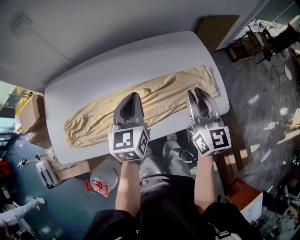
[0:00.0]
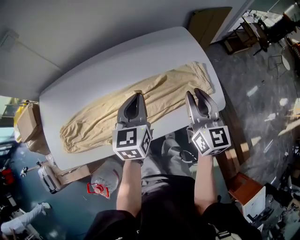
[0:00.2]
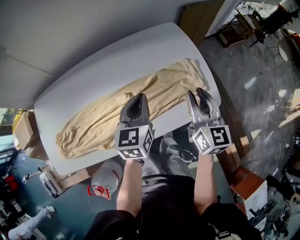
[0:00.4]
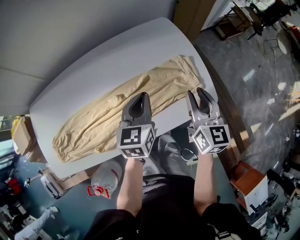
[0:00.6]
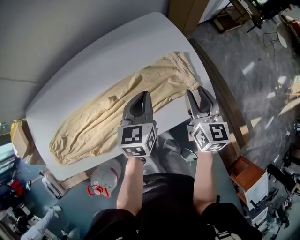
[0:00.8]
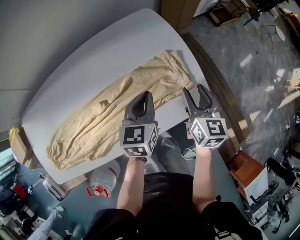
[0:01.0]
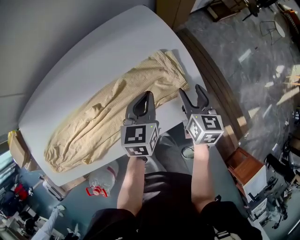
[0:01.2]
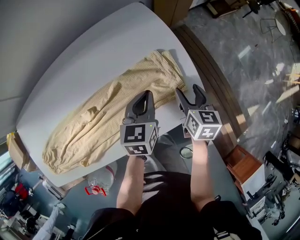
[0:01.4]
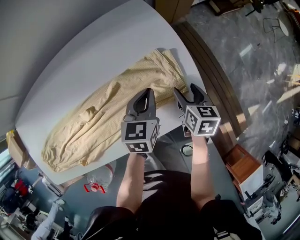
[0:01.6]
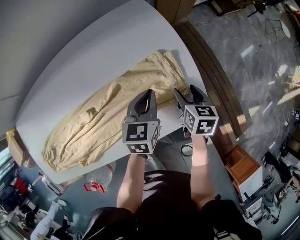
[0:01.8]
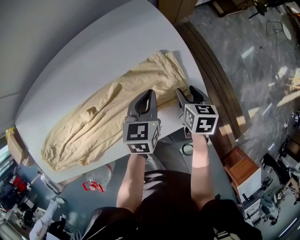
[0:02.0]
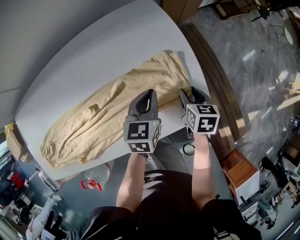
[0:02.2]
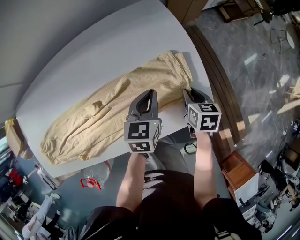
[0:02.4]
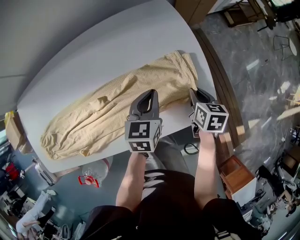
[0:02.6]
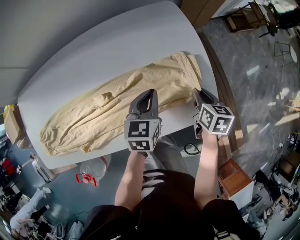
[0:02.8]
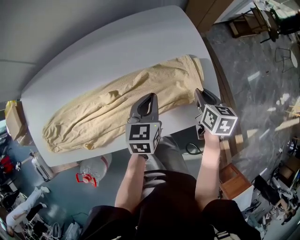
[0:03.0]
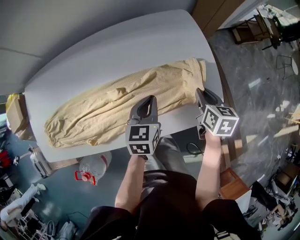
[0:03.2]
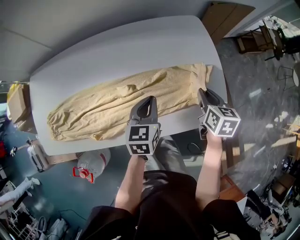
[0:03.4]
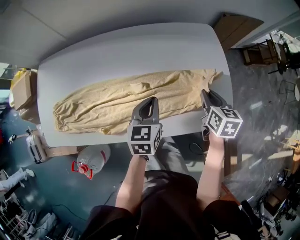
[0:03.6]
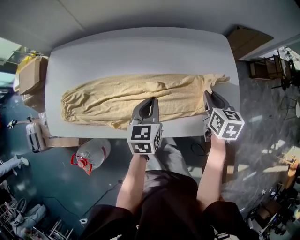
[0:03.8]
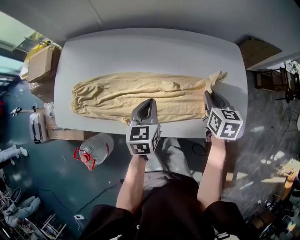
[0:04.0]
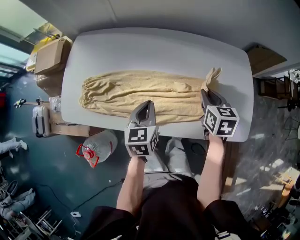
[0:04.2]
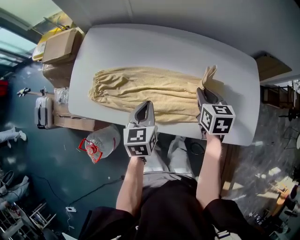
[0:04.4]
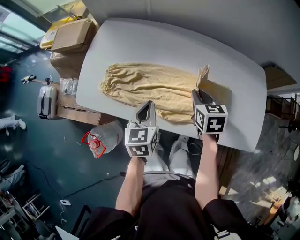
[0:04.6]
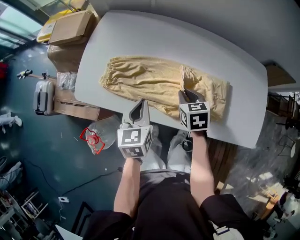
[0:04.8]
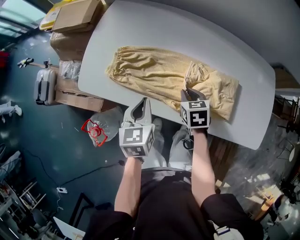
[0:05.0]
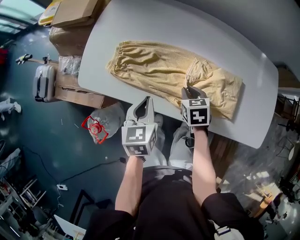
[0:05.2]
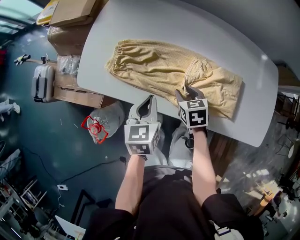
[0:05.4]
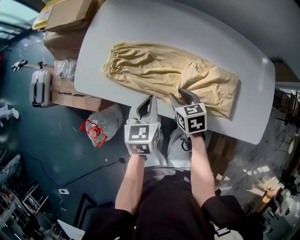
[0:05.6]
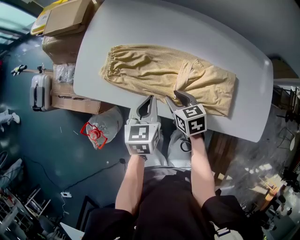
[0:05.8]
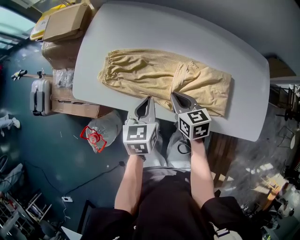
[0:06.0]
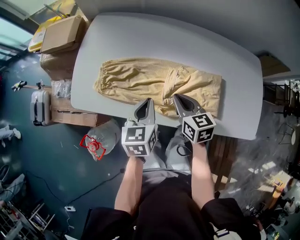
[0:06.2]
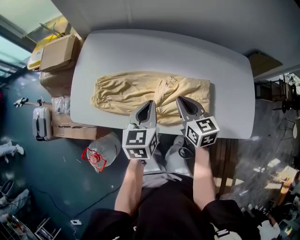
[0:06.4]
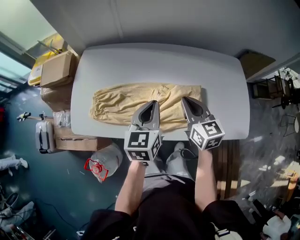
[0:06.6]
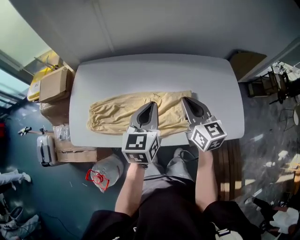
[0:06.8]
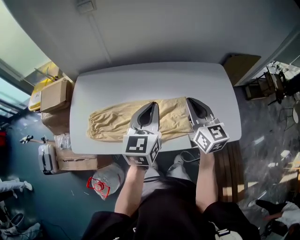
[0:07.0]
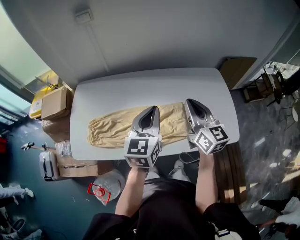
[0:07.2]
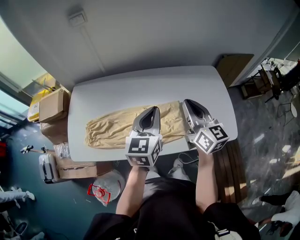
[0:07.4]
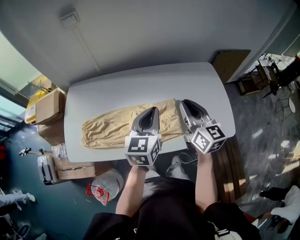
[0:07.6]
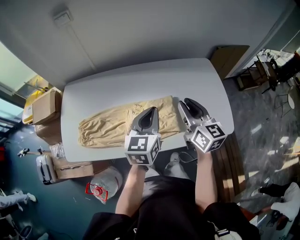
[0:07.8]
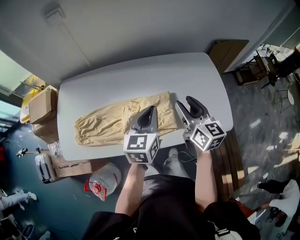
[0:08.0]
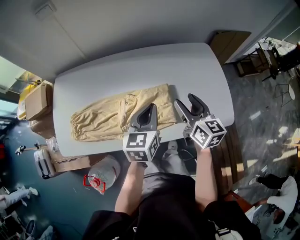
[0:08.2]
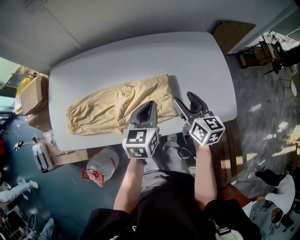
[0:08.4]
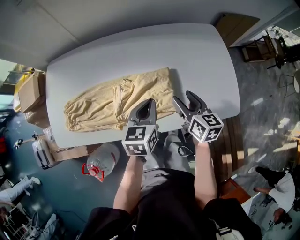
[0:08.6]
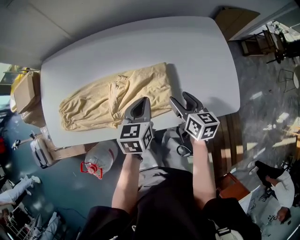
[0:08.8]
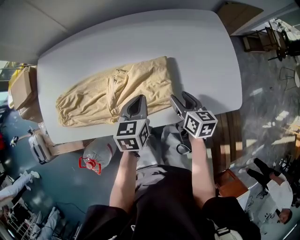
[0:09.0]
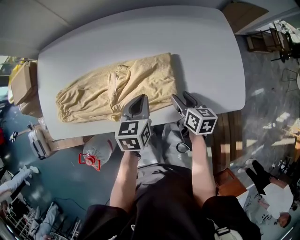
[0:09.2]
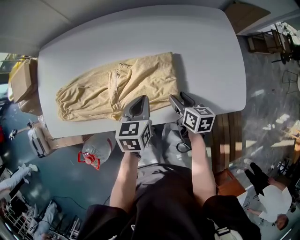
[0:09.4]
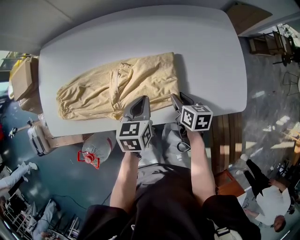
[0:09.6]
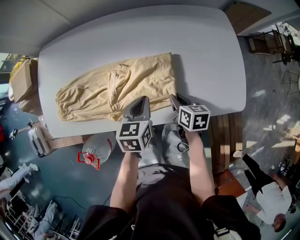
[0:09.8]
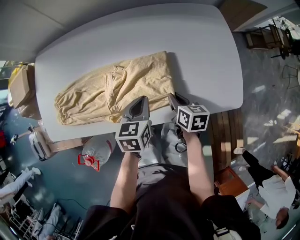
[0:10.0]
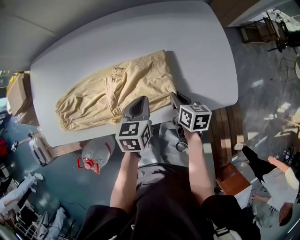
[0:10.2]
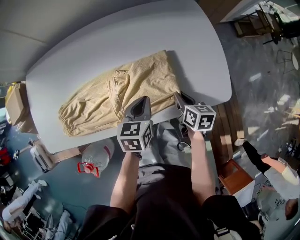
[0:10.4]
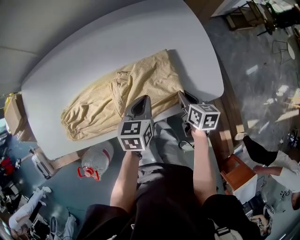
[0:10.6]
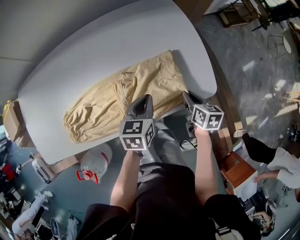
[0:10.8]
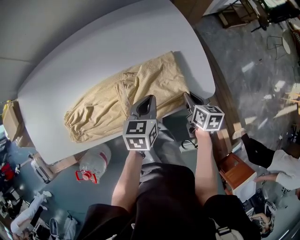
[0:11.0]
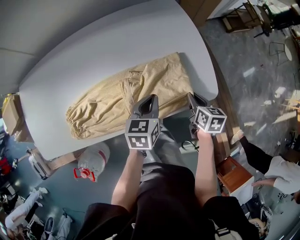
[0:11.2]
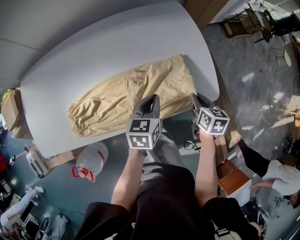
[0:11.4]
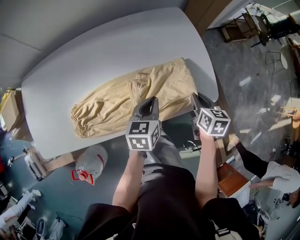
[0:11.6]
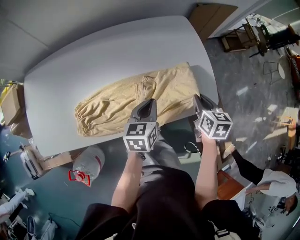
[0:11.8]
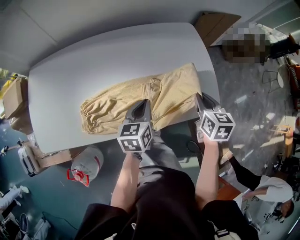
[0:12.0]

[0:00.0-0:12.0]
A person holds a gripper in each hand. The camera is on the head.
0:00.0 to 0:01.6: The left gripper shifts roughly 35 cm to the right, downward and forward, and rotates roughly 30 degrees; the right gripper goes approximately 40 cm downward, to the right and forward, points its fingers approximately 40 degrees further downward, and opens.
0:01.6 to 0:03.0: The left gripper shifts some 10 cm to the left. Meanwhile the right gripper shifts by some 5 cm, and closes its fingers.
0:03.0 to 0:04.4: The right gripper moves some 40 cm, and rotates approximately 40 degrees; the left gripper ends up about 40 cm from where it was, and turns by roughly 30 degrees.
0:04.4 to 0:06.0: The left gripper goes some 10 cm to the left. Meanwhile the right gripper shifts approximately 25 cm to the left and downward, and opens and closes again.
0:06.0 to 0:07.6: The right gripper ends up some 35 cm from where it was, and tips its fingers upward by about 30 degrees. The left gripper moves approximately 30 cm, and rotates some 30 degrees.
0:07.6 to 0:09.0: Both grippers move downward, roughly 25 cm. The left gripper changes its angle by some 30 degrees, while the right gripper turns by some 30 degrees, and opens up.
0:09.0 to 0:10.4: Both grippers move to the right, roughly 10 cm. The right gripper closes its fingers.
0:10.4 to 0:12.0: The right gripper goes some 15 cm upward, and swivels some 20 degrees. Meanwhile the left gripper shifts approximately 5 cm upward, and reaches some 10 cm to the right, then returns.

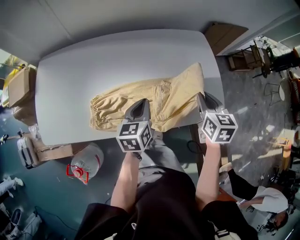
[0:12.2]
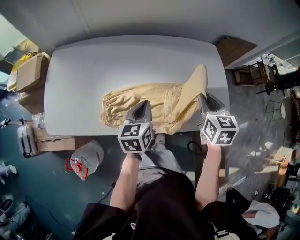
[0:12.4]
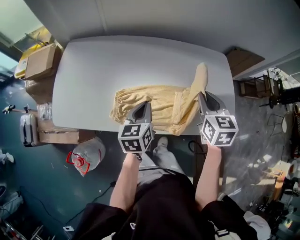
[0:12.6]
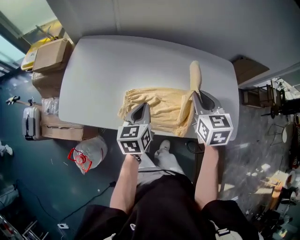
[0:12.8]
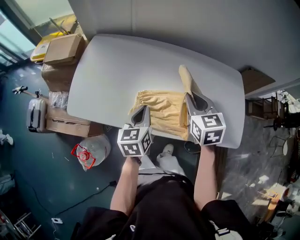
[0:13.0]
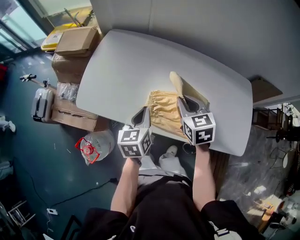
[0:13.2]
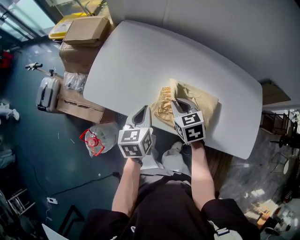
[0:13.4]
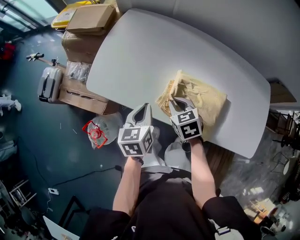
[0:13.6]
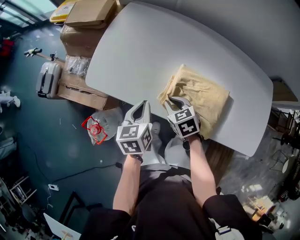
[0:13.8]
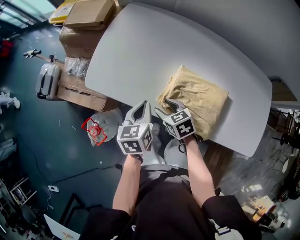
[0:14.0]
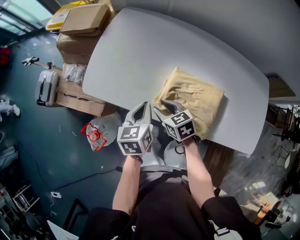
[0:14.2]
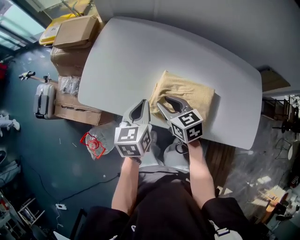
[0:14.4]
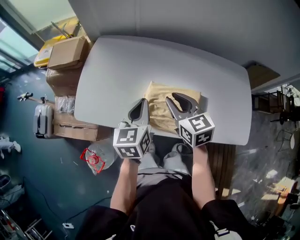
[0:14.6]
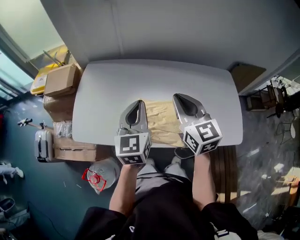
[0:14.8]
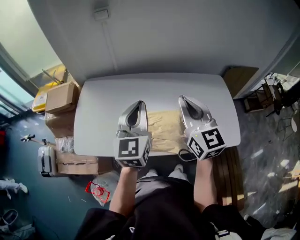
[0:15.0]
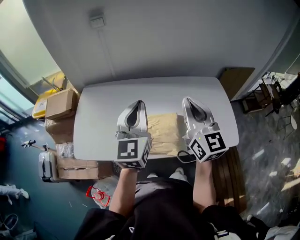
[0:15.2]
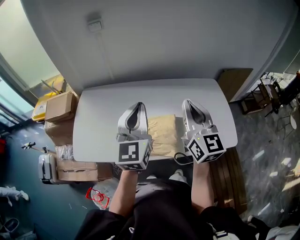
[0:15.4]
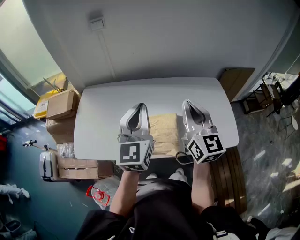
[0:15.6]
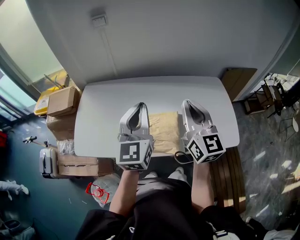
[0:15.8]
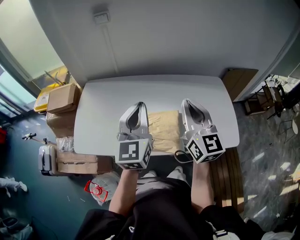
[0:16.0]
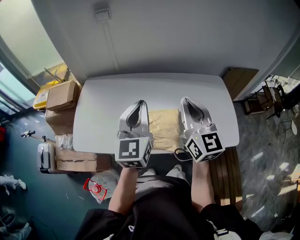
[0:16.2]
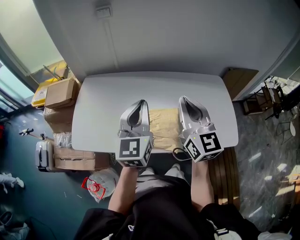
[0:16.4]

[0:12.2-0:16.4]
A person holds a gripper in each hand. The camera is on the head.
0:12.2 to 0:13.6: The right gripper ends up approximately 50 cm from where it was, and changes its angle by about 50 degrees; the left gripper changes place by approximately 35 cm, and turns by roughly 30 degrees.
0:13.6 to 0:15.0: The grippers both shift upward by about 30 cm. The left gripper points its fingers about 30 degrees further upward, while the right gripper tips its fingers upward by some 50 degrees, and opens, then closes once more.
0:15.0 to 0:16.4: The grippers move only a little.

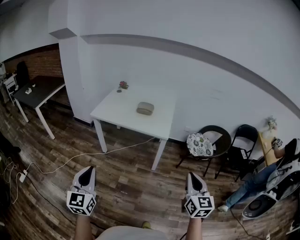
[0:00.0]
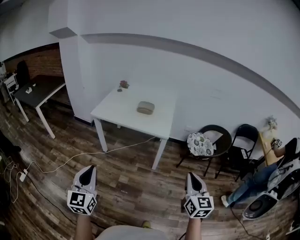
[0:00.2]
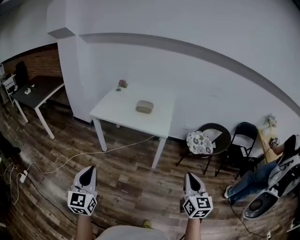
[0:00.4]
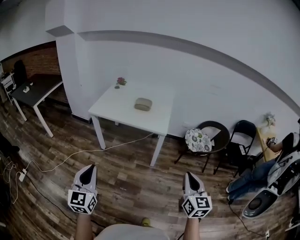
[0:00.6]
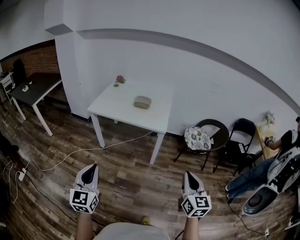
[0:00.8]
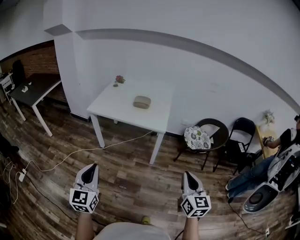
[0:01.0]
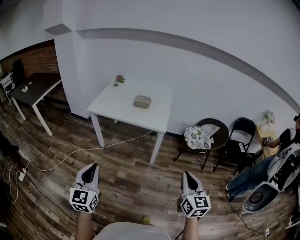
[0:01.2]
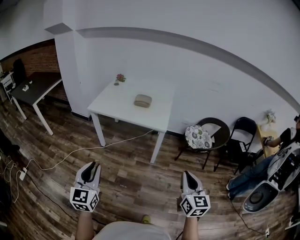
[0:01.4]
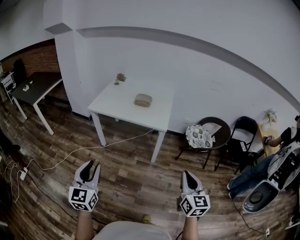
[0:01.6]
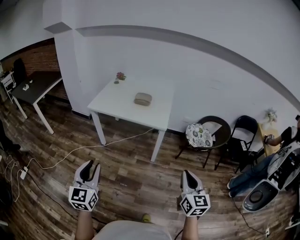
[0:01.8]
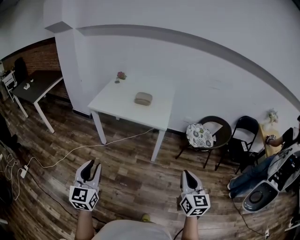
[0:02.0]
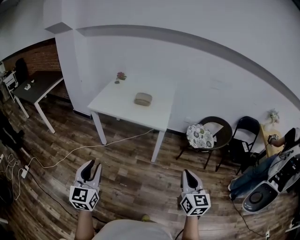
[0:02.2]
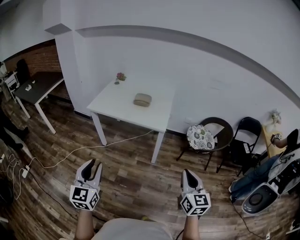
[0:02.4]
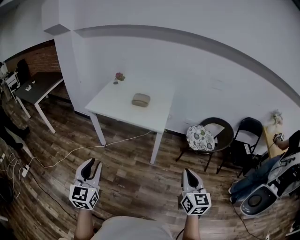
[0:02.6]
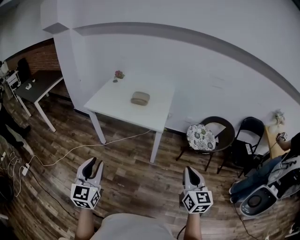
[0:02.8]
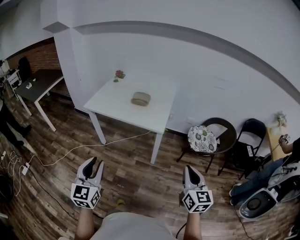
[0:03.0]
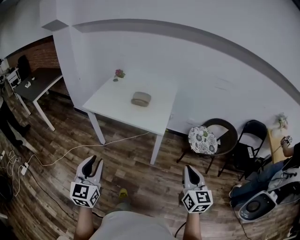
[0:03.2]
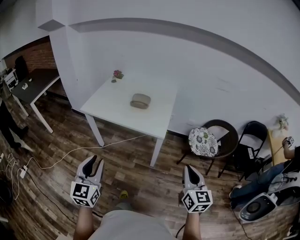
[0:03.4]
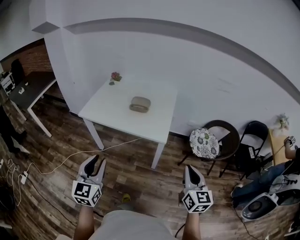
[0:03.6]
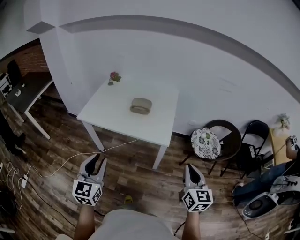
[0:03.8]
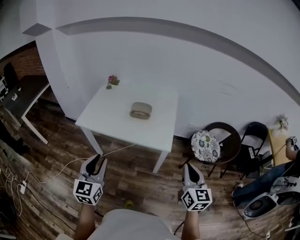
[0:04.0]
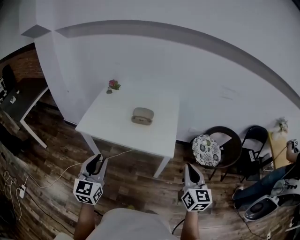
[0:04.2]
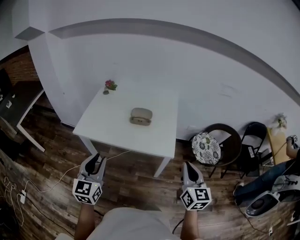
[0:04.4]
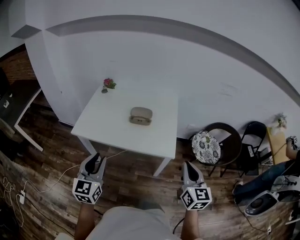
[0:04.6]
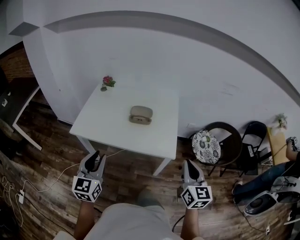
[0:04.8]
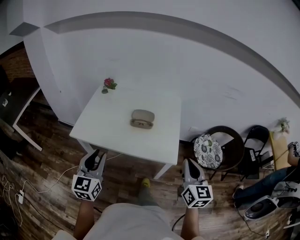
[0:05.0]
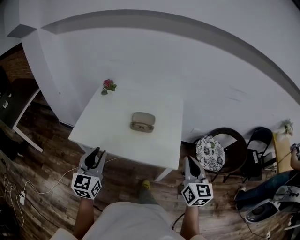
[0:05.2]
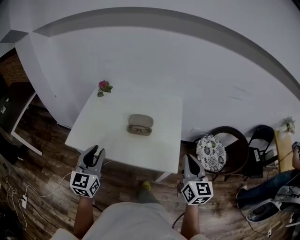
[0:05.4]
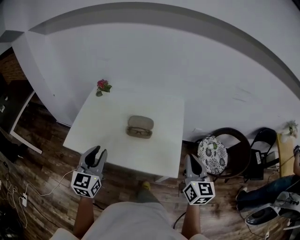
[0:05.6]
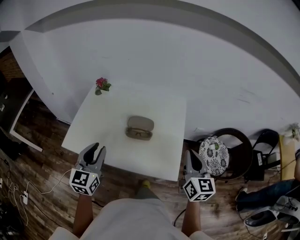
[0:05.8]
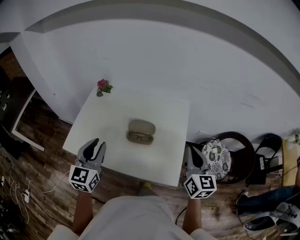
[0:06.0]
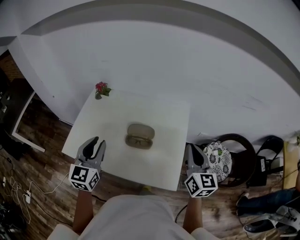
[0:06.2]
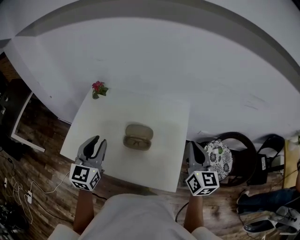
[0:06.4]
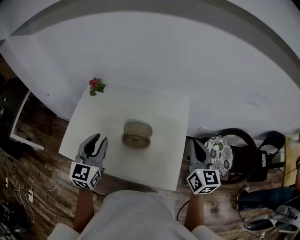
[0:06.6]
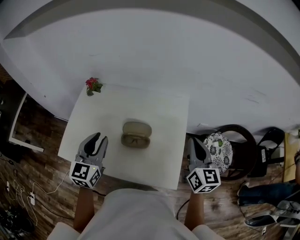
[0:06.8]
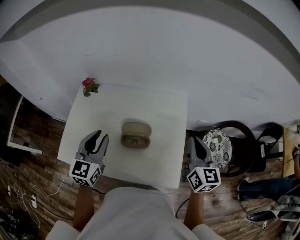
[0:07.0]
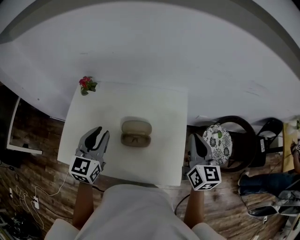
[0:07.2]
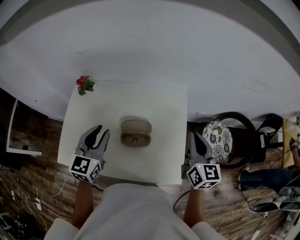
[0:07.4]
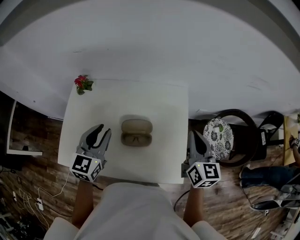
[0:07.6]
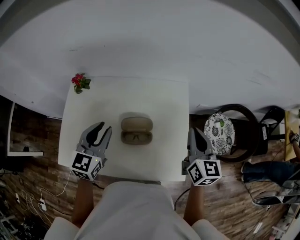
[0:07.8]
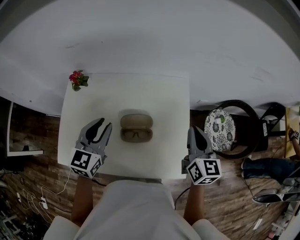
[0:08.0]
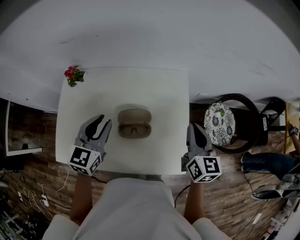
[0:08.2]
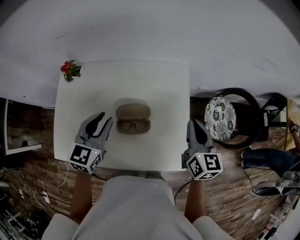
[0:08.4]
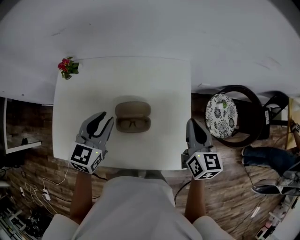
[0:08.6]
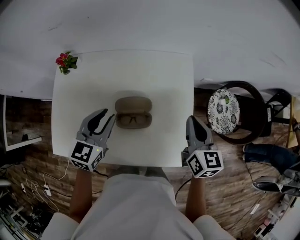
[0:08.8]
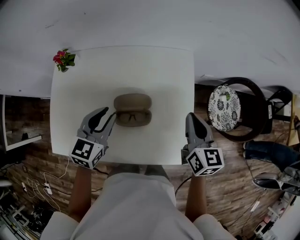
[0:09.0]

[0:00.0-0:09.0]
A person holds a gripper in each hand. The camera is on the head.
0:00.0 to 0:01.6: The left gripper opens.
0:01.6 to 0:03.0: The right gripper moves forward and to the right, roughly 15 cm, while the left gripper heads to the right and forward, covering approximately 15 cm.
0:03.0 to 0:04.4: The right gripper moves forward and to the left, about 30 cm, while the left gripper goes approximately 30 cm forward.
0:04.4 to 0:06.0: The grippers both shift forward by some 30 cm.
0:06.0 to 0:07.6: The two grippers go about 15 cm forward.
0:07.6 to 0:09.0: Both grippers travel together downward, roughly 10 cm.
